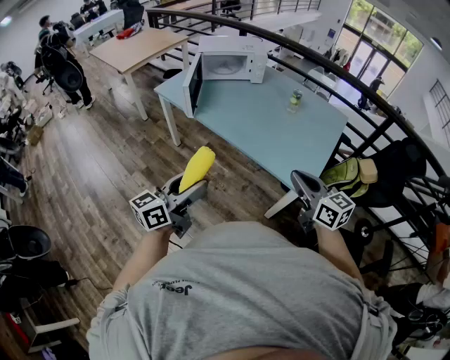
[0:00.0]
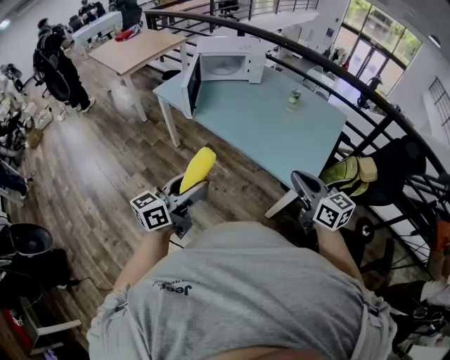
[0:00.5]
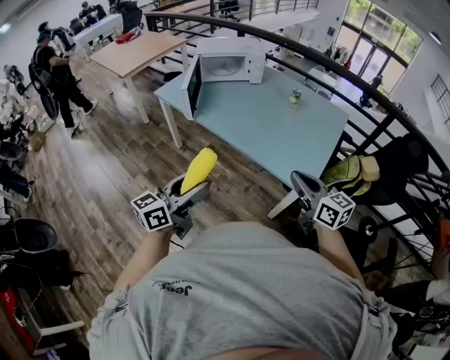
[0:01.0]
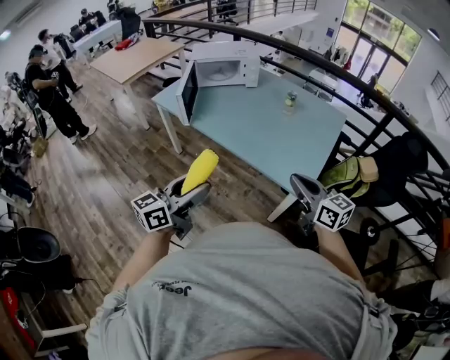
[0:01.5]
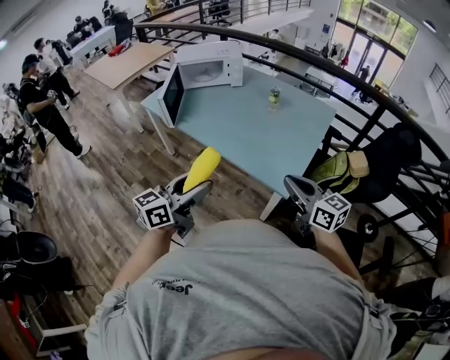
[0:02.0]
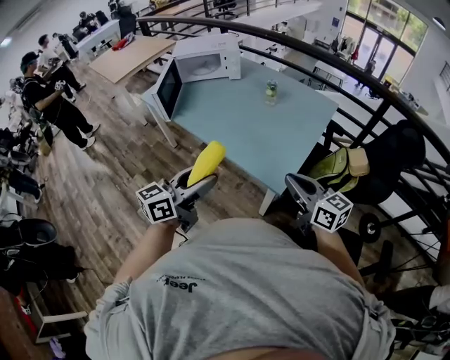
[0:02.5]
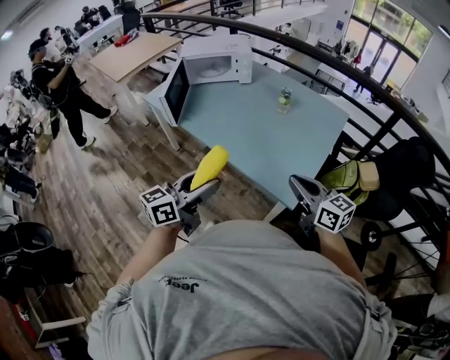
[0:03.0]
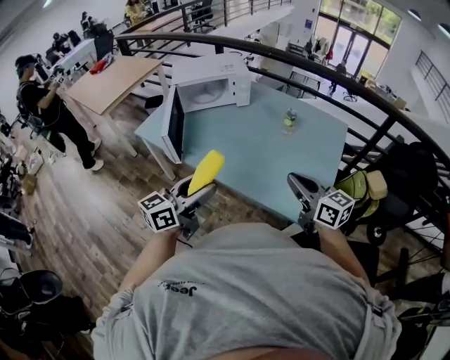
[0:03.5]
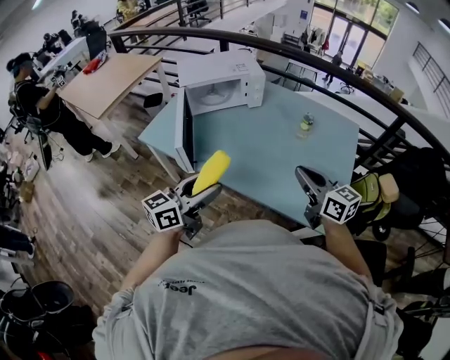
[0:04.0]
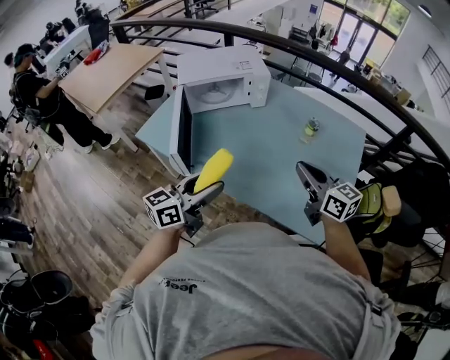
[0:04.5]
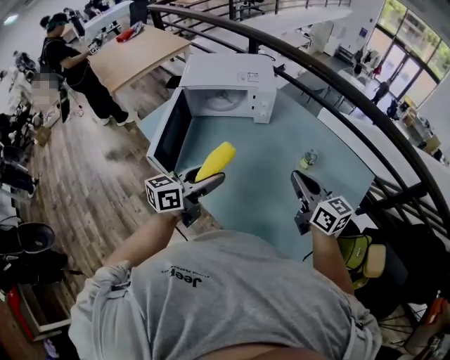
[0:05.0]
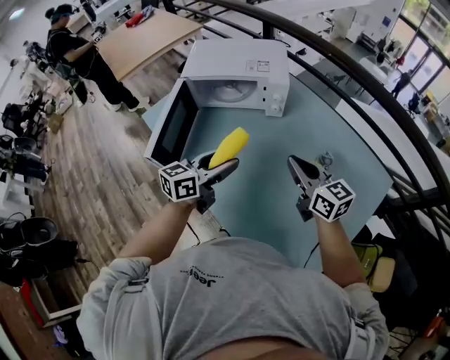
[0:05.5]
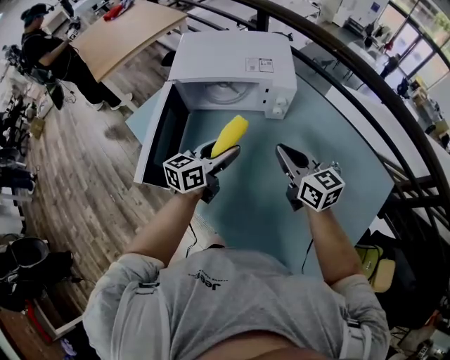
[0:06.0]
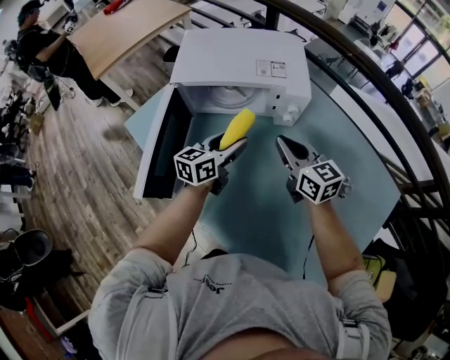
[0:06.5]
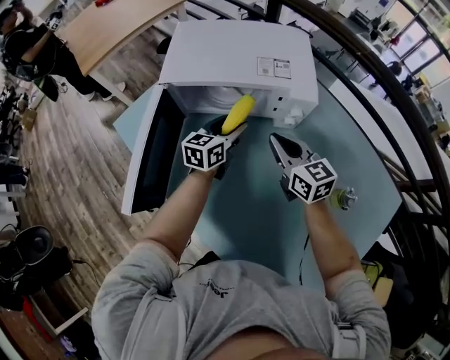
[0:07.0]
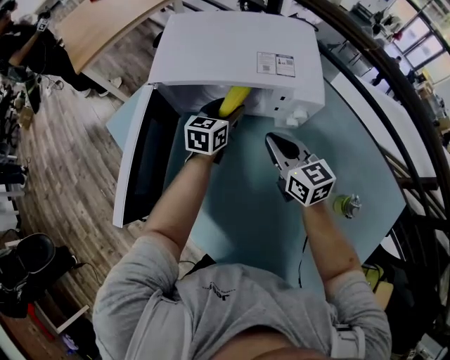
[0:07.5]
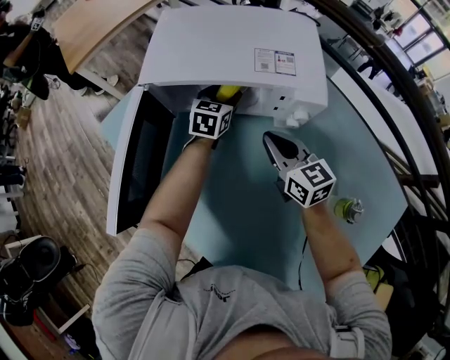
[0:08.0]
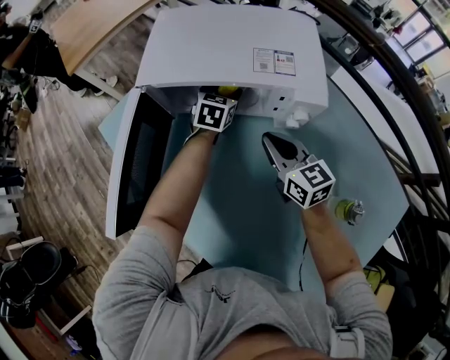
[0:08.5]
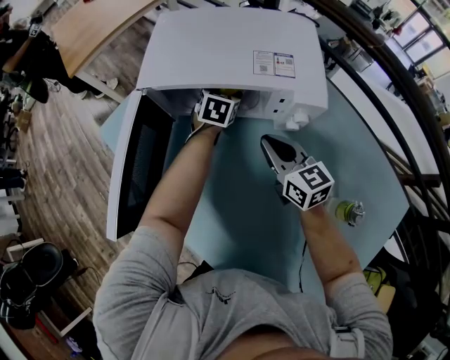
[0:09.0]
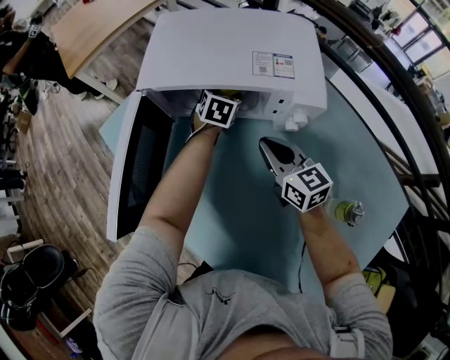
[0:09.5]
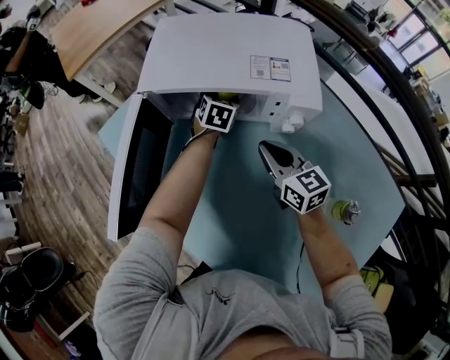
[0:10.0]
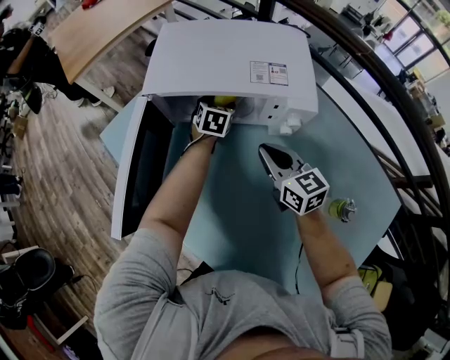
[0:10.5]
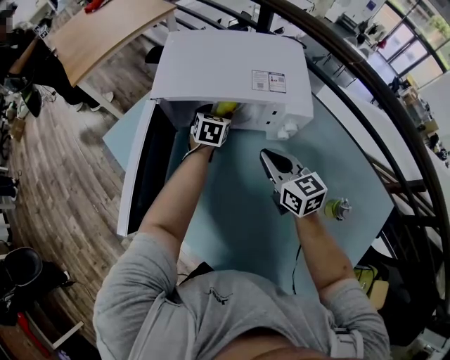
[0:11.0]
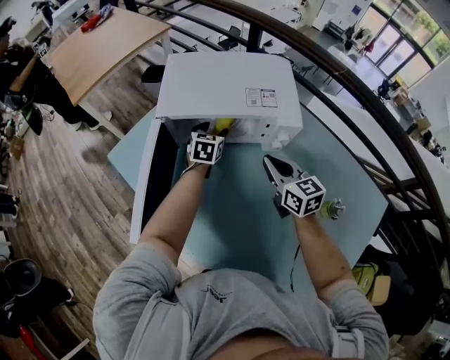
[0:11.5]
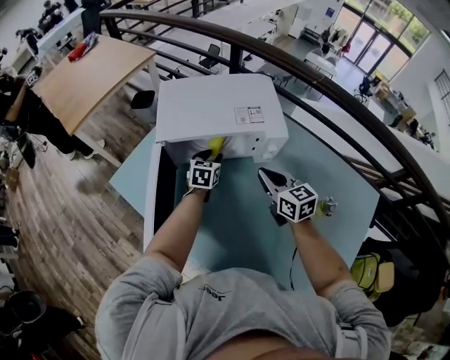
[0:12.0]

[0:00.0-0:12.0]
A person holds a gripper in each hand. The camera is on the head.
0:00.0 to 0:02.0: Both grippers travel together to the right, about 10 cm.
0:02.0 to 0:04.0: The two grippers go about 35 cm forward and to the left.
0:04.0 to 0:06.0: Both grippers travel together forward, approximately 35 cm. The left gripper rotates some 30 degrees.
0:06.0 to 0:08.0: The right gripper goes approximately 20 cm forward and downward; the left gripper heads forward and downward, covering about 30 cm, and rotates approximately 30 degrees.
0:08.0 to 0:10.0: The grippers make only small movements.
0:10.0 to 0:12.0: The right gripper travels upward by roughly 5 cm. Meanwhile the left gripper shifts roughly 10 cm backward.

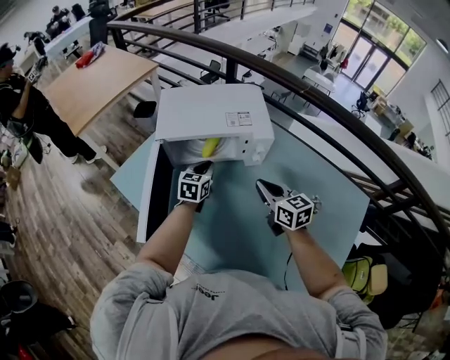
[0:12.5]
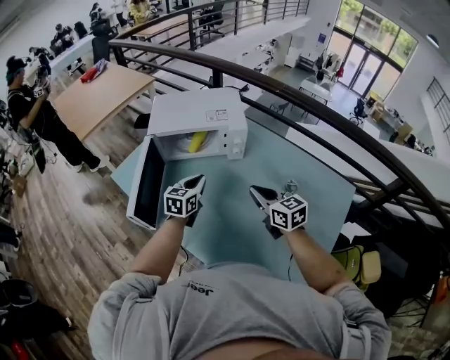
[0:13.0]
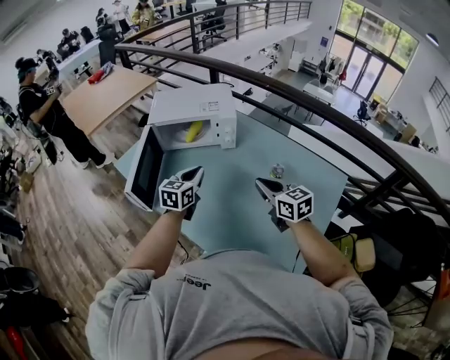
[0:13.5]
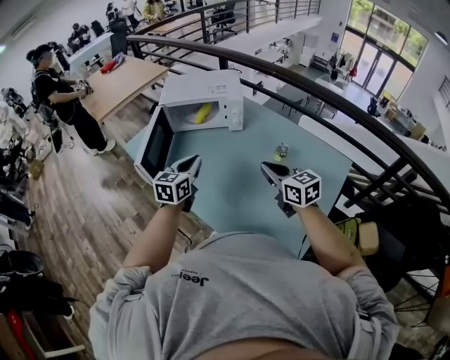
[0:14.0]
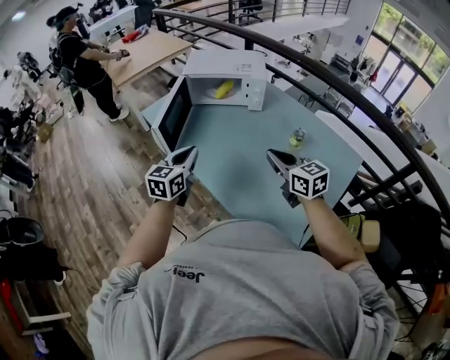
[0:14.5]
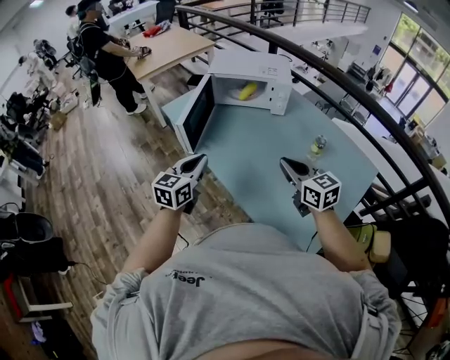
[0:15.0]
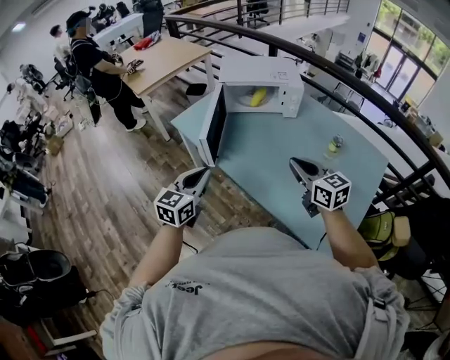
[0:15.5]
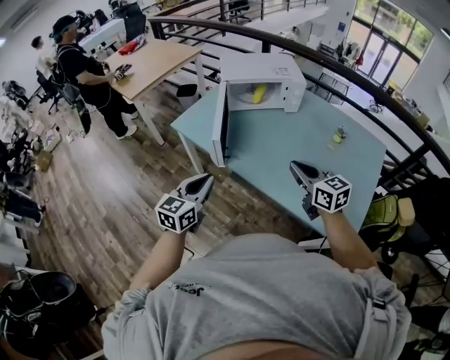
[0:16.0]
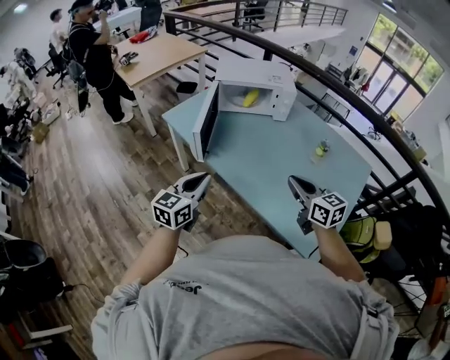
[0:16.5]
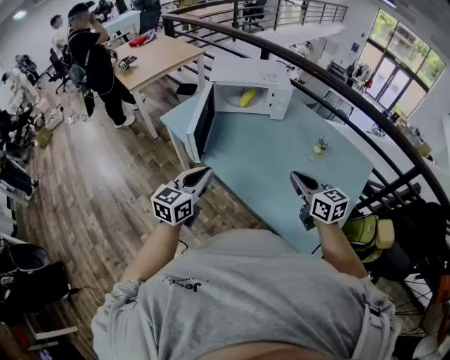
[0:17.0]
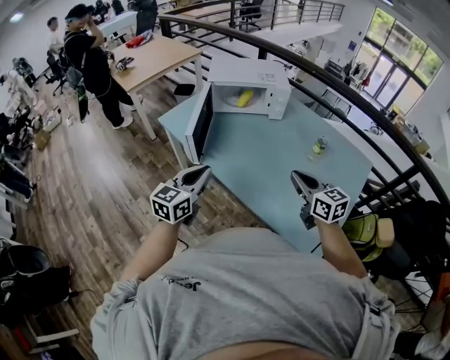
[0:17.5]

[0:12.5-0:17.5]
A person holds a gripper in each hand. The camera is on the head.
0:12.5 to 0:15.0: The grippers both shift backward by approximately 35 cm.
0:15.0 to 0:17.5: The right gripper goes to the left and returns, some 15 cm each way. Meanwhile the left gripper goes to the left and returns, about 15 cm each way.

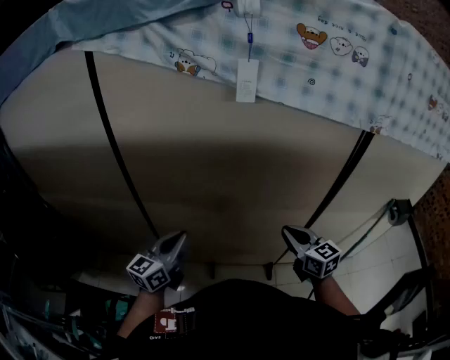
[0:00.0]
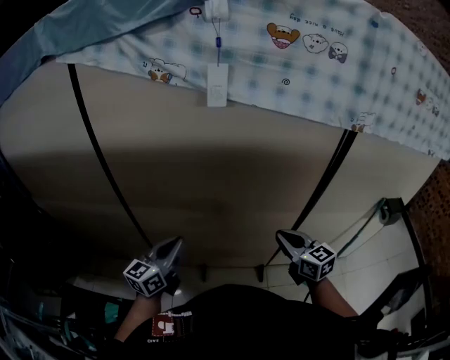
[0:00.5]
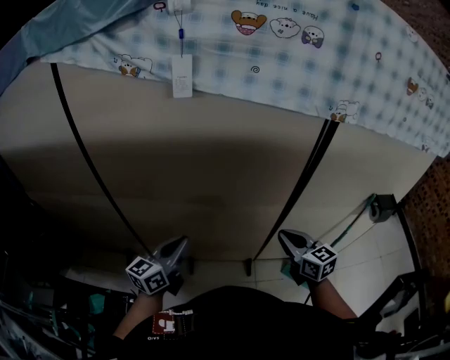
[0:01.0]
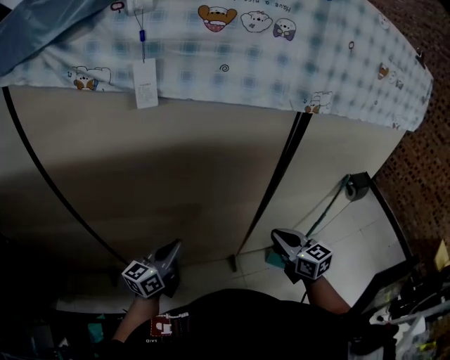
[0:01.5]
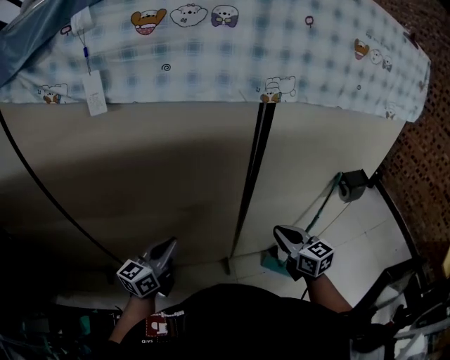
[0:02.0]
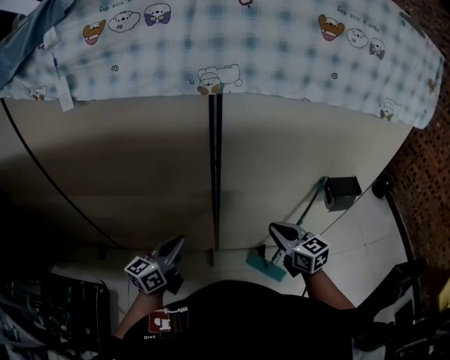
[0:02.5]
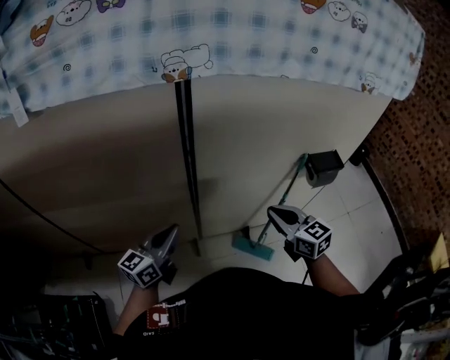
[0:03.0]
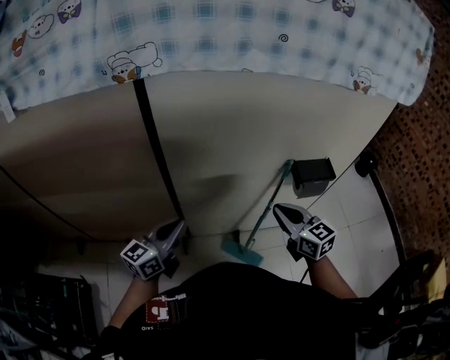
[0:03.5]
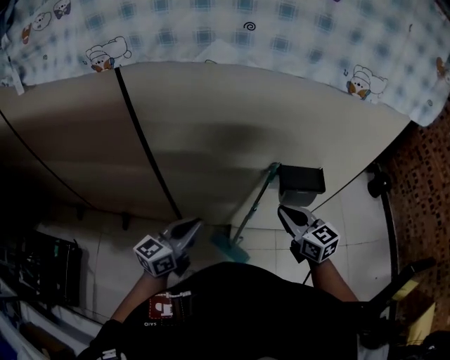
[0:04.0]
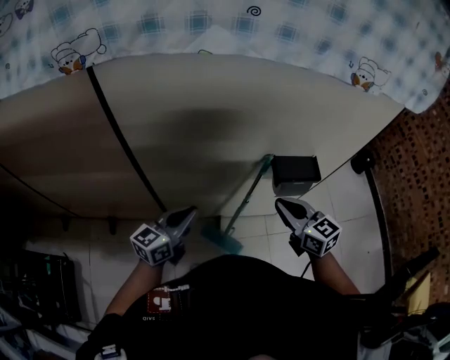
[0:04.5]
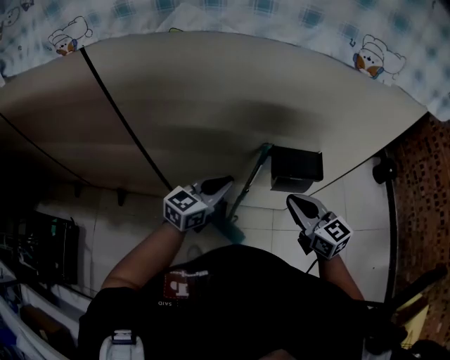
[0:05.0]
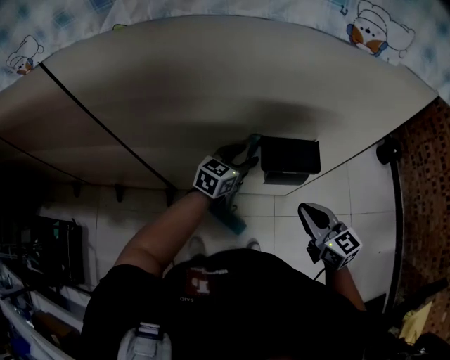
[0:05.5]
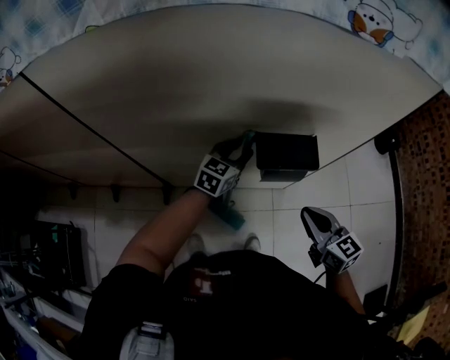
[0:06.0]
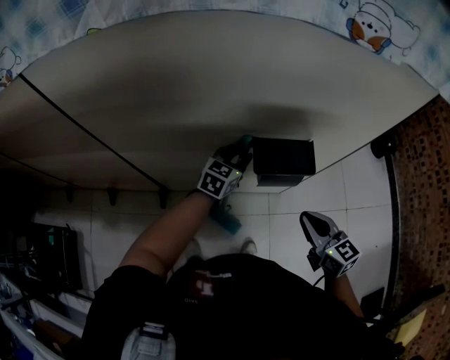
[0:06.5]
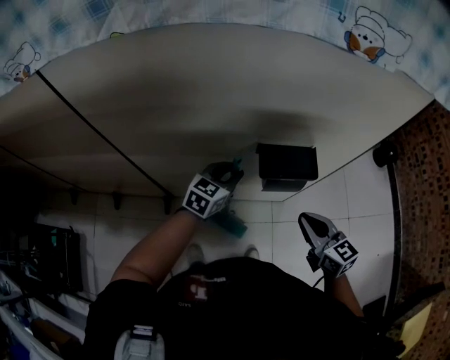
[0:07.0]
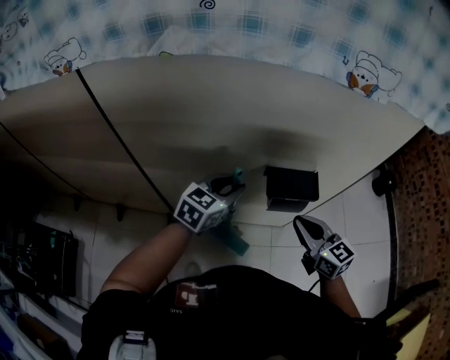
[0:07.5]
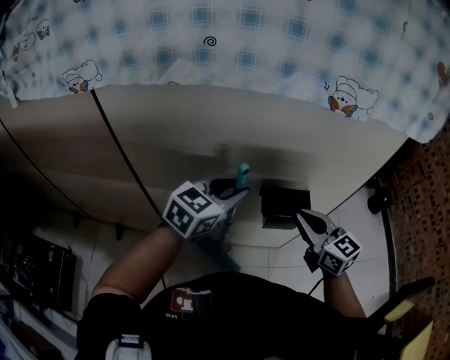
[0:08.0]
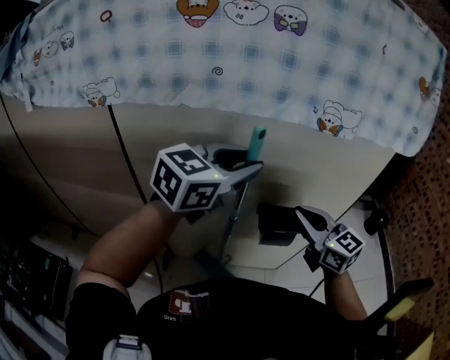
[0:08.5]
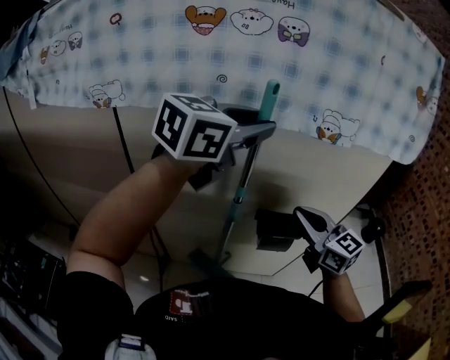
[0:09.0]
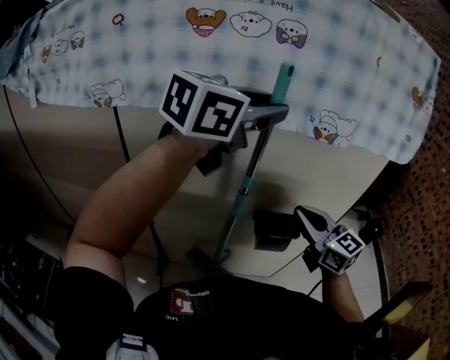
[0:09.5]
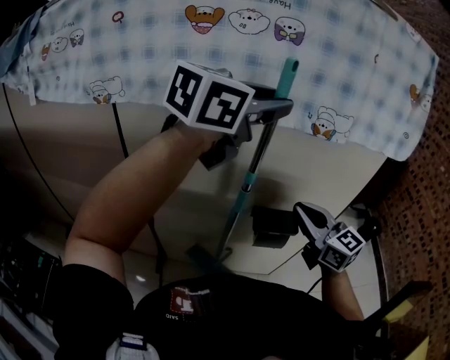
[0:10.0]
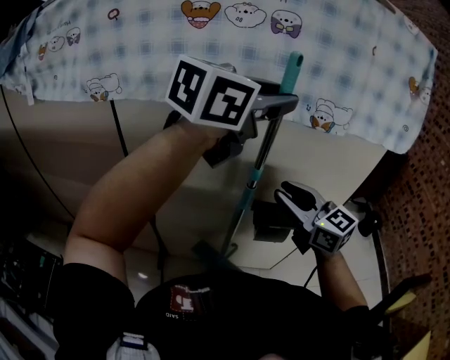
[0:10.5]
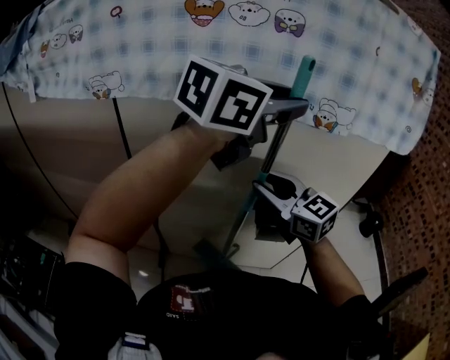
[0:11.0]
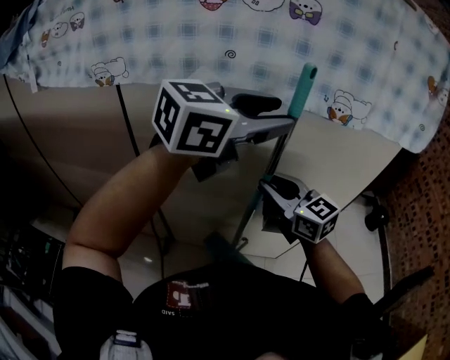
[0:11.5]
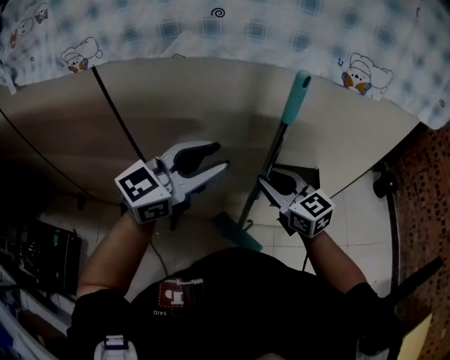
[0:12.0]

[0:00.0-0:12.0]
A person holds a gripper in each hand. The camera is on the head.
0:00.0 to 0:02.0: The two grippers go roughly 30 cm to the right.
0:02.0 to 0:04.0: The pair of grippers is taken to the right, some 50 cm.
0:04.0 to 0:06.0: The left gripper moves forward, to the right and downward, approximately 35 cm, swivels about 30 degrees, and opens up. Meanwhile the right gripper shifts roughly 15 cm to the right.
0:06.0 to 0:08.0: The left gripper moves upward, approximately 25 cm. Meanwhile the right gripper goes about 15 cm upward and to the left.
0:08.0 to 0:10.0: The right gripper goes roughly 10 cm upward, while the left gripper heads upward, covering some 30 cm.
0:10.0 to 0:12.0: The left gripper is displaced downward and to the left by approximately 25 cm, while the right gripper shifts roughly 15 cm downward and to the left.
